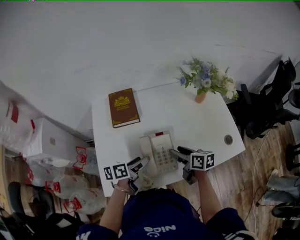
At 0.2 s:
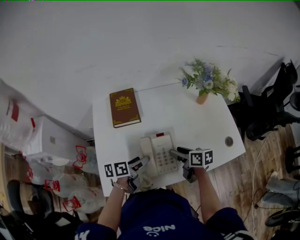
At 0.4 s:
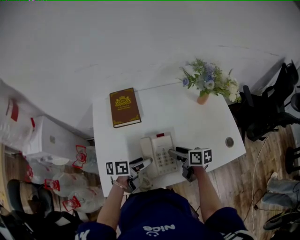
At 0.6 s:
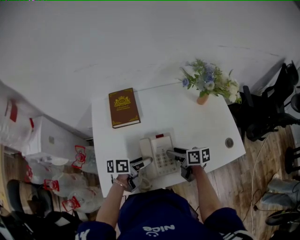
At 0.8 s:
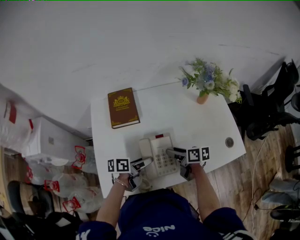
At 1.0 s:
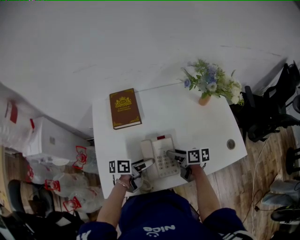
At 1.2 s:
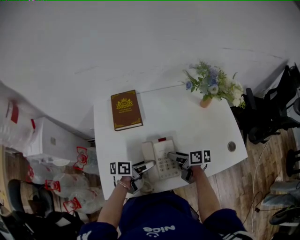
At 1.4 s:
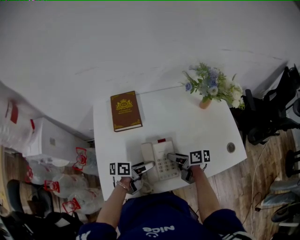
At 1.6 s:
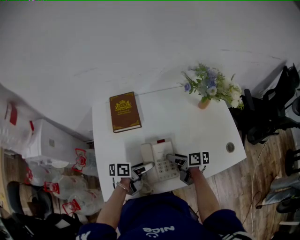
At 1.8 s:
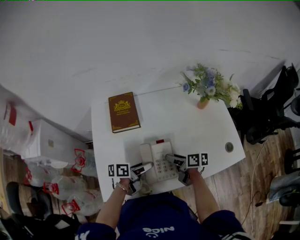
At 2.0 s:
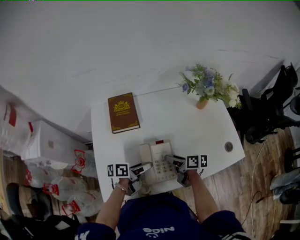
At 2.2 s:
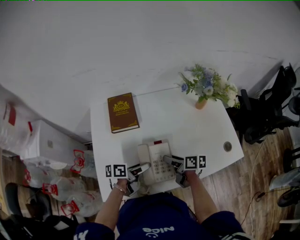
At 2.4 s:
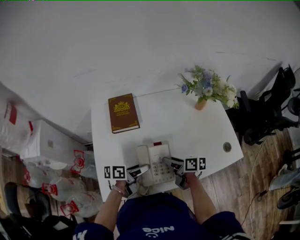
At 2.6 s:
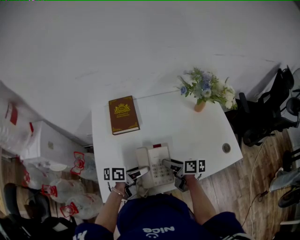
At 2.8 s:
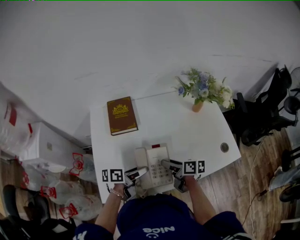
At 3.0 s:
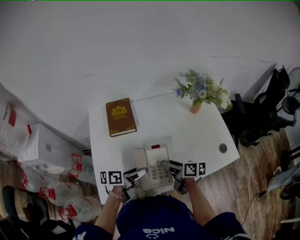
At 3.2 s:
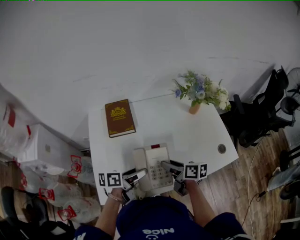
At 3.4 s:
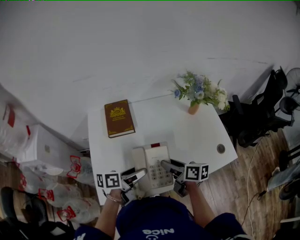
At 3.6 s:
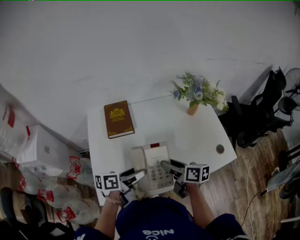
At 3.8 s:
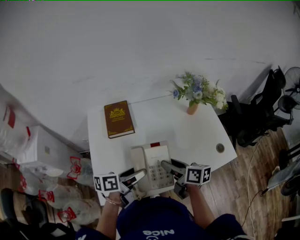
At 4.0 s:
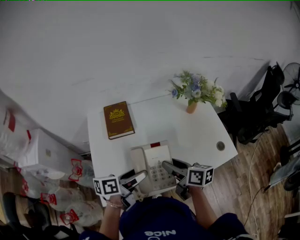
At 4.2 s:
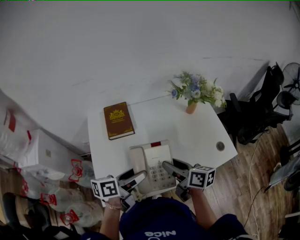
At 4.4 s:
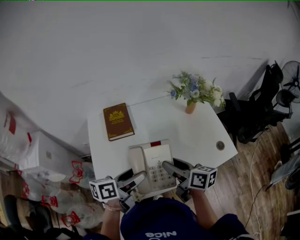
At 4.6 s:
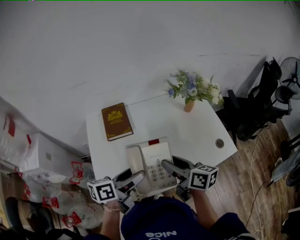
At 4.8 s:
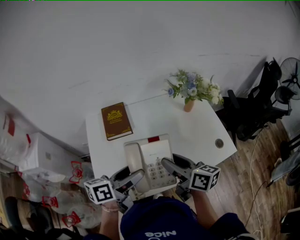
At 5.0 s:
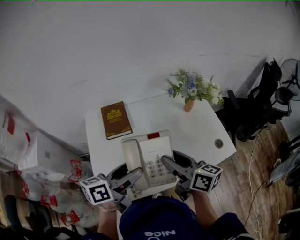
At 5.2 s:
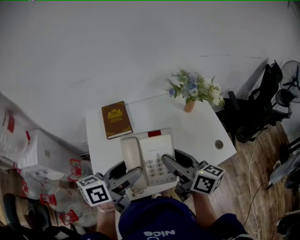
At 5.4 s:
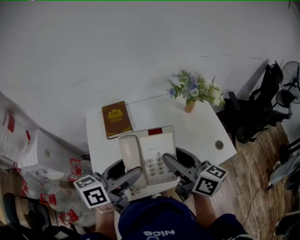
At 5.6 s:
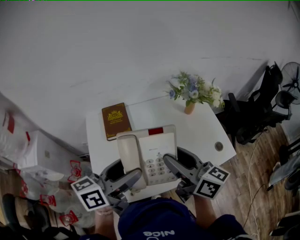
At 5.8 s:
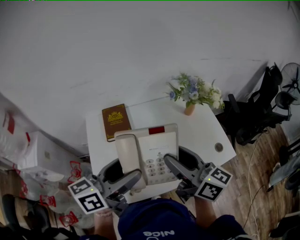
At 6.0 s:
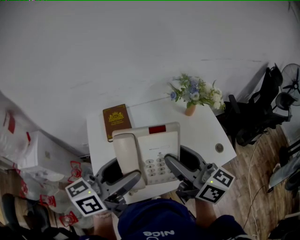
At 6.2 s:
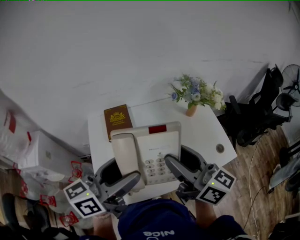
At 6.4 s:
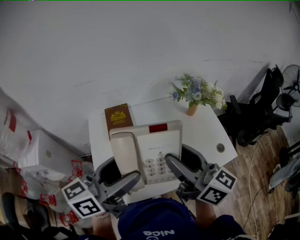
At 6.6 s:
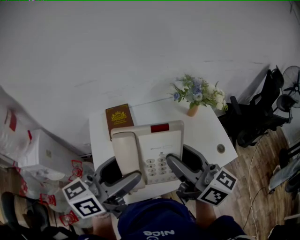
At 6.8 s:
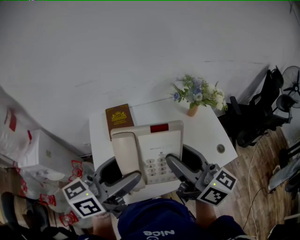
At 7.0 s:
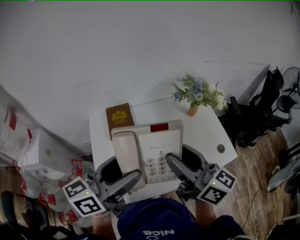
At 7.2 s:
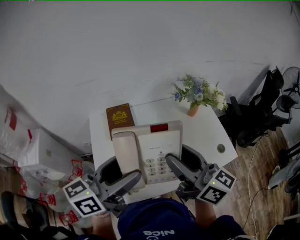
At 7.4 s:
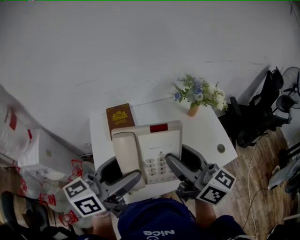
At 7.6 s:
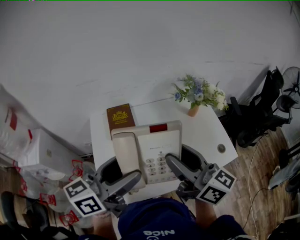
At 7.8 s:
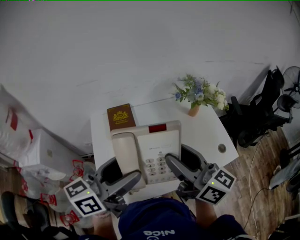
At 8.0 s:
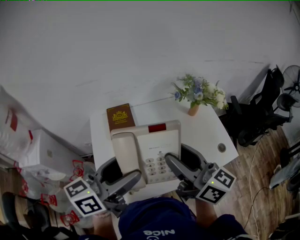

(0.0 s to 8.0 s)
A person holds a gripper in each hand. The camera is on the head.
0.0 s - 1.6 s: The left gripper moves roughly 5 cm. Meanwhile the right gripper heads downward, covering approximately 5 cm.
1.6 s - 3.2 s: Both grippers travel together upward, some 5 cm.
3.2 s - 4.8 s: The two grippers go roughly 15 cm upward. The right gripper swivels about 20 degrees.
4.8 s - 6.4 s: The two grippers go about 15 cm upward. The left gripper swivels some 30 degrees, while the right gripper changes its angle by about 20 degrees.
6.4 s - 8.0 s: Neither gripper changes place.

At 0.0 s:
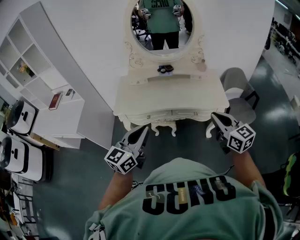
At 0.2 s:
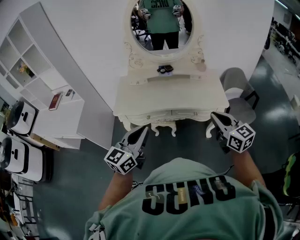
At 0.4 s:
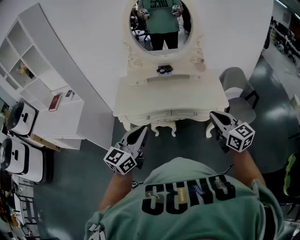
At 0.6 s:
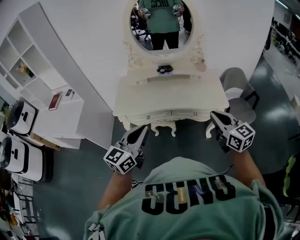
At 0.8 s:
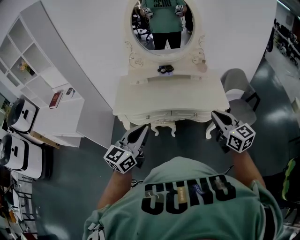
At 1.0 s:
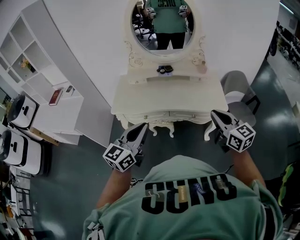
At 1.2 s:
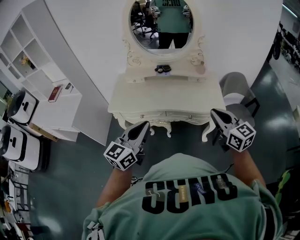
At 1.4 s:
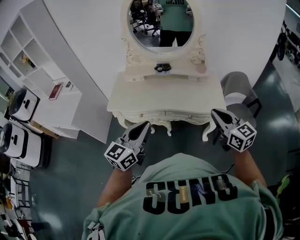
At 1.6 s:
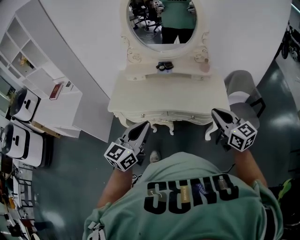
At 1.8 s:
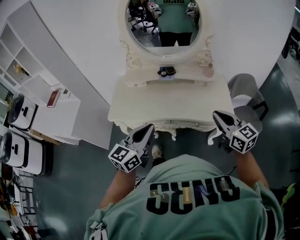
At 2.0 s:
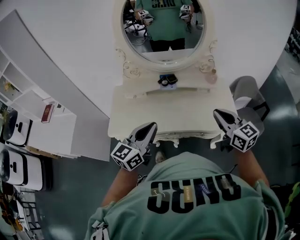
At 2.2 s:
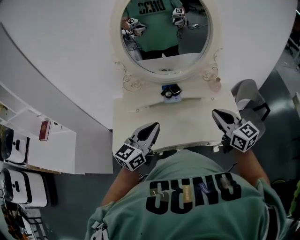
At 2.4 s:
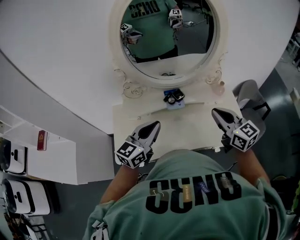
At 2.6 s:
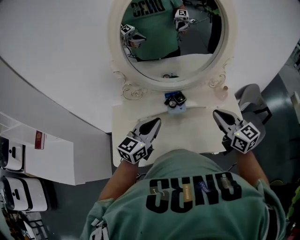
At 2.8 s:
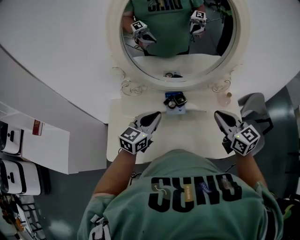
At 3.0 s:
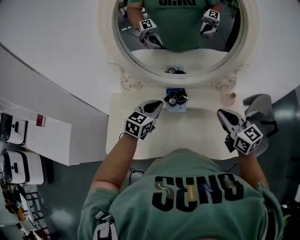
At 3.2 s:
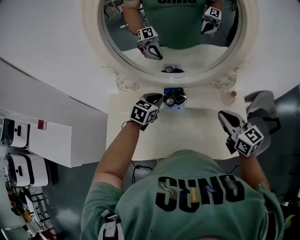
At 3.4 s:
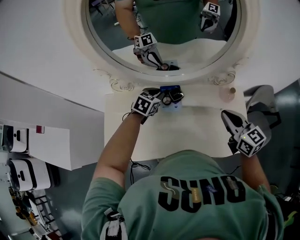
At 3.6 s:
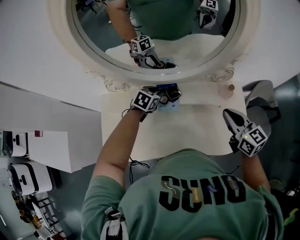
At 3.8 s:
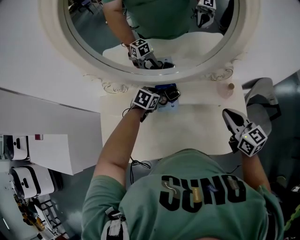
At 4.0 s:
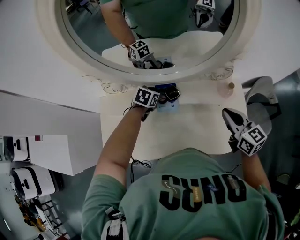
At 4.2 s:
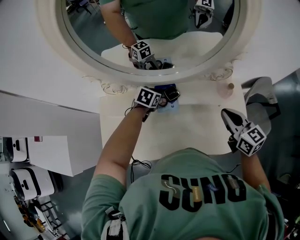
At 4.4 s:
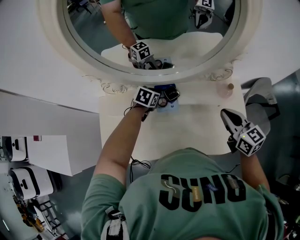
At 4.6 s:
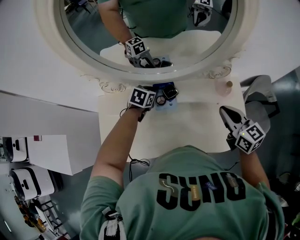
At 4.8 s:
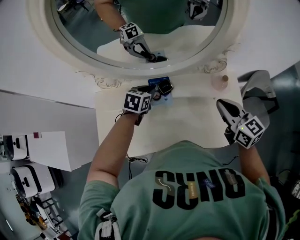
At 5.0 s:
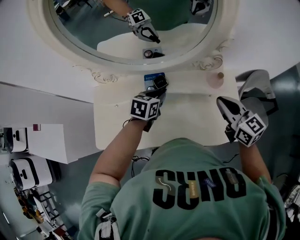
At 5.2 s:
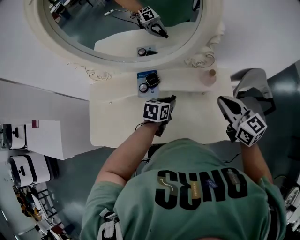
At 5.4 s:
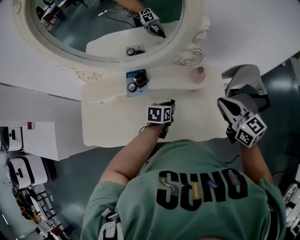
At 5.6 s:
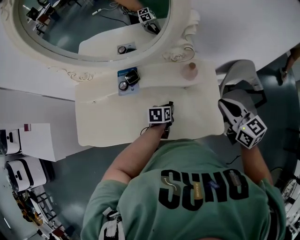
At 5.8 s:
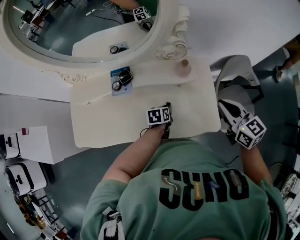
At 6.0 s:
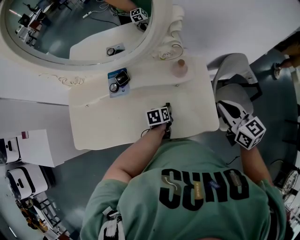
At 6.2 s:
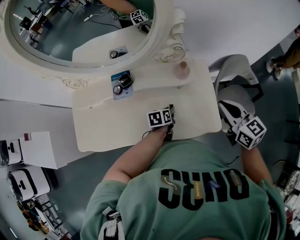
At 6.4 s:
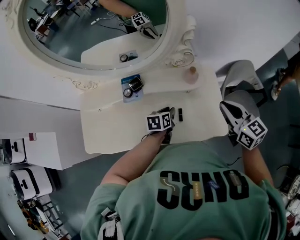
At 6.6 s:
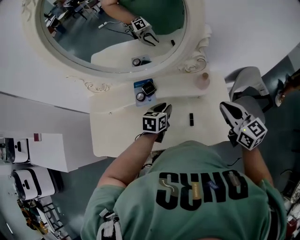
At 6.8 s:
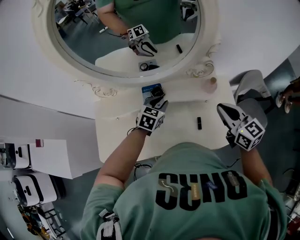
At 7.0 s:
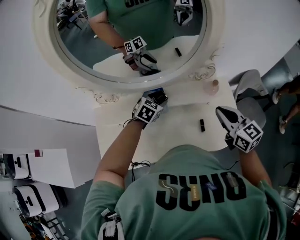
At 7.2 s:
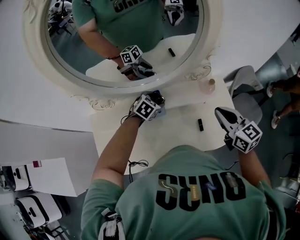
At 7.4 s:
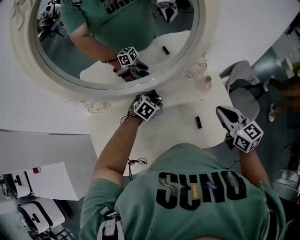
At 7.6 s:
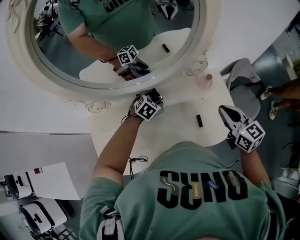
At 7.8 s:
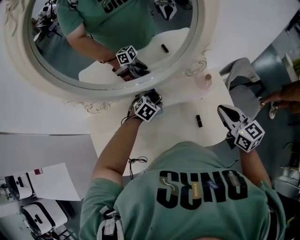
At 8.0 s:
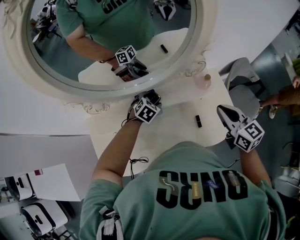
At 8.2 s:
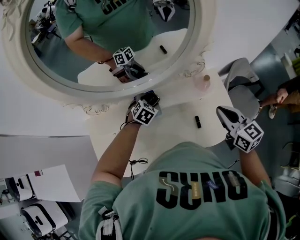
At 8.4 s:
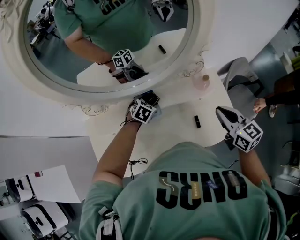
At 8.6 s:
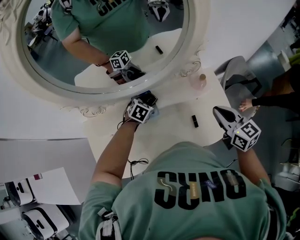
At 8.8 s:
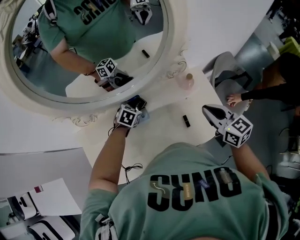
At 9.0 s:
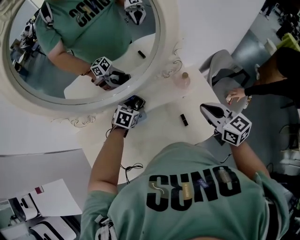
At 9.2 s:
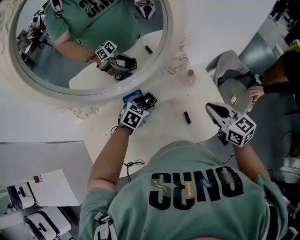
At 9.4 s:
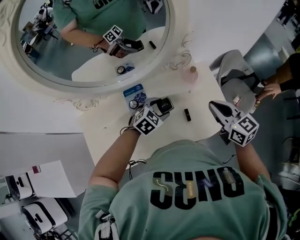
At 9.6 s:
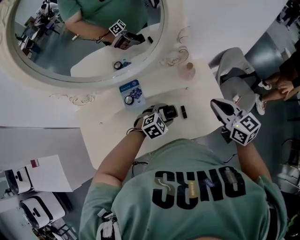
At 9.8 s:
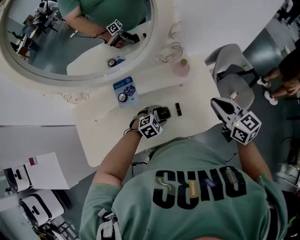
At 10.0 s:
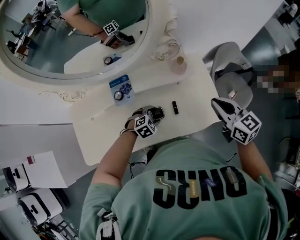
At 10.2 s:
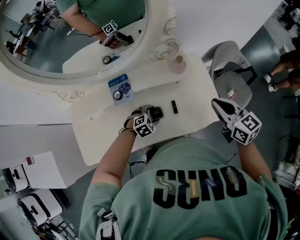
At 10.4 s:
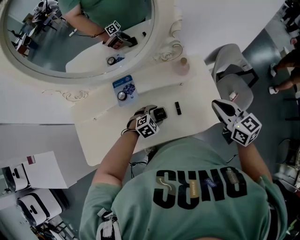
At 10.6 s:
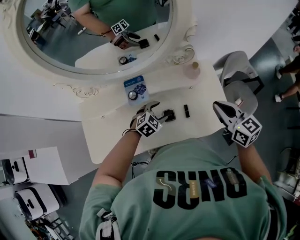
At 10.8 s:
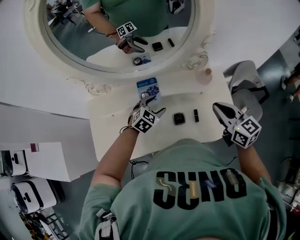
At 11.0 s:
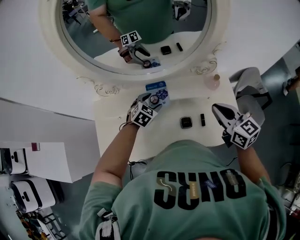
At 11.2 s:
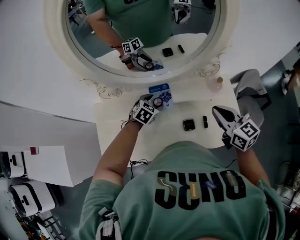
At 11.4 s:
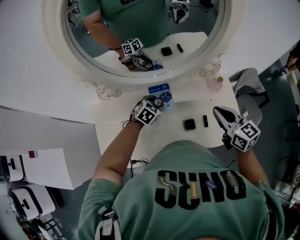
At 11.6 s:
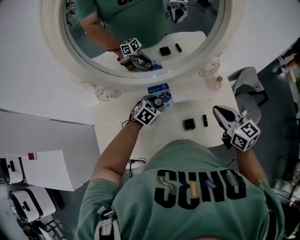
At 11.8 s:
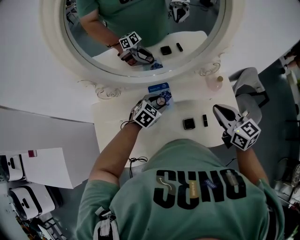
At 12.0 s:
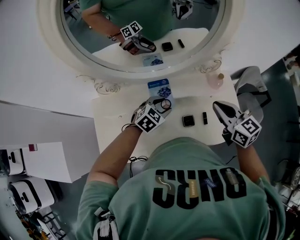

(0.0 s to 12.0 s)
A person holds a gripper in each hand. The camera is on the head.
0.0 s - 1.6 s: The right gripper is displaced forward and to the right by some 10 cm. The left gripper goes some 10 cm to the right and forward.
1.6 s - 3.0 s: The two grippers go roughly 40 cm forward. The left gripper rotates about 30 degrees.
3.0 s - 4.4 s: The left gripper shifts roughly 20 cm downward and forward, and tilts its fingers about 30 degrees downward. Meanwhile the right gripper travels downward and to the right by approximately 10 cm.
4.4 s - 6.0 s: The right gripper moves to the right, some 20 cm, while the left gripper travels to the right and backward by about 35 cm, and swivels roughly 40 degrees.
6.0 s - 7.6 s: The left gripper goes approximately 25 cm to the left, forward and upward, rolls clockwise, seen from behind, by about 70 degrees, and opens its fingers, while the right gripper heads to the left, covering about 15 cm.
7.6 s - 9.0 s: The grippers move only a little.
9.0 s - 10.4 s: The right gripper is displaced to the right by approximately 10 cm. The left gripper is displaced to the right, backward and downward by roughly 25 cm, and changes its angle by approximately 30 degrees.
10.4 s - 12.0 s: The right gripper shifts some 15 cm to the left. Meanwhile the left gripper goes roughly 20 cm upward, to the left and forward, and rotates about 20 degrees.

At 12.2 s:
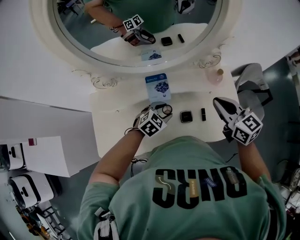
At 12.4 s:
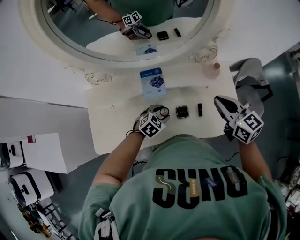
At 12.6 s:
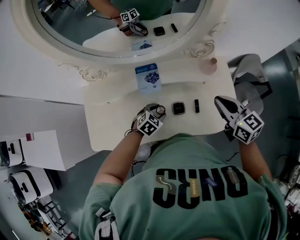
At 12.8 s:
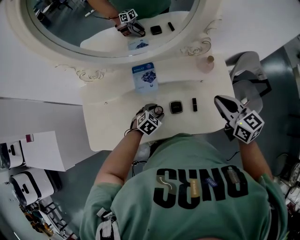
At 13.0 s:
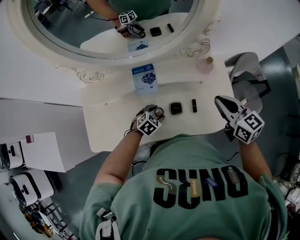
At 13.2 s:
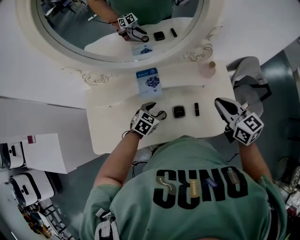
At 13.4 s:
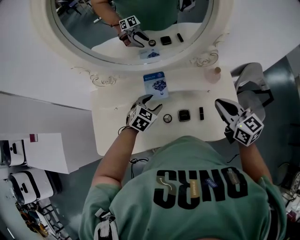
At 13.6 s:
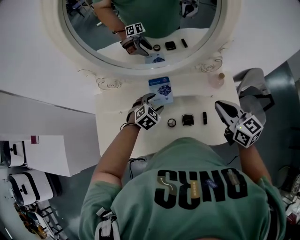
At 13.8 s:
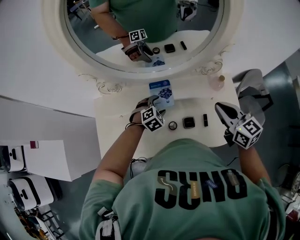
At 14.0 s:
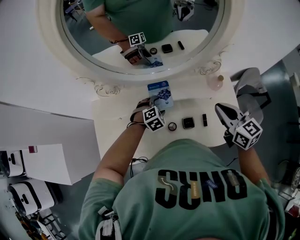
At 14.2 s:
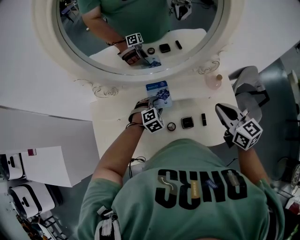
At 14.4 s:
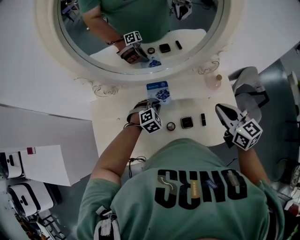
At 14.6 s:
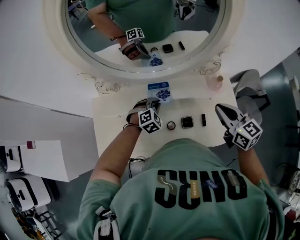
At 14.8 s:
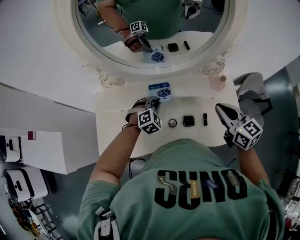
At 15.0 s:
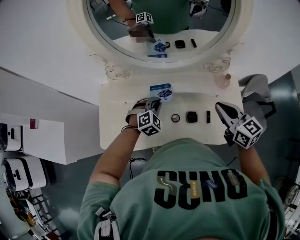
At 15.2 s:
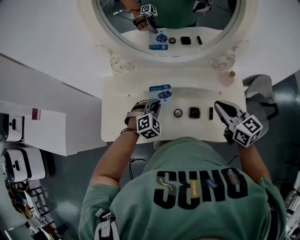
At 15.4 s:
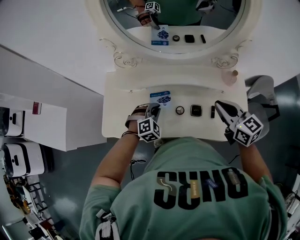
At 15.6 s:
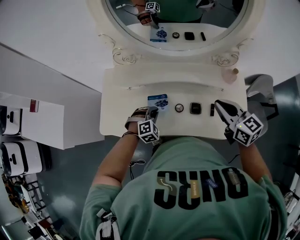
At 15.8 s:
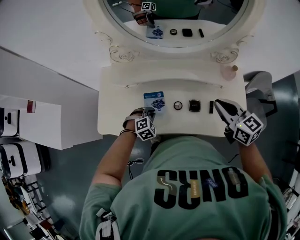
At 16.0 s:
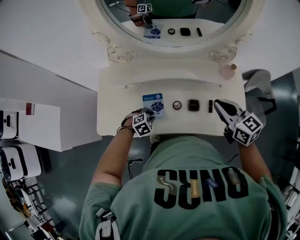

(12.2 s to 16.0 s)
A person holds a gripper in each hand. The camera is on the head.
12.2 s - 13.4 s: The left gripper goes downward and returns, some 10 cm each way.
13.4 s - 14.8 s: The left gripper turns by about 30 degrees, and closes up.
14.8 s - 16.0 s: The right gripper ends up about 5 cm from where it was; the left gripper moves backward, downward and to the left, about 25 cm, and turns by some 30 degrees.
